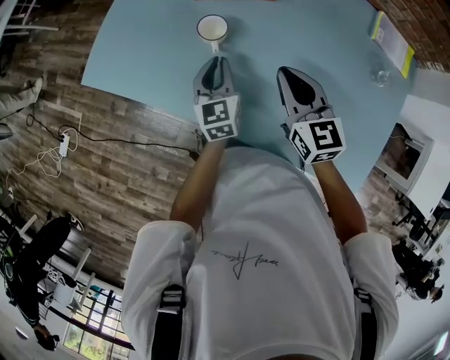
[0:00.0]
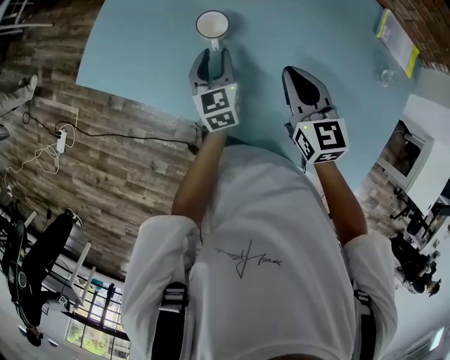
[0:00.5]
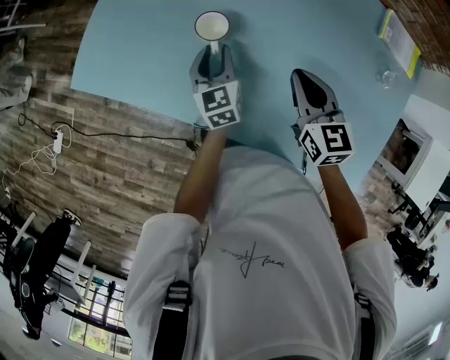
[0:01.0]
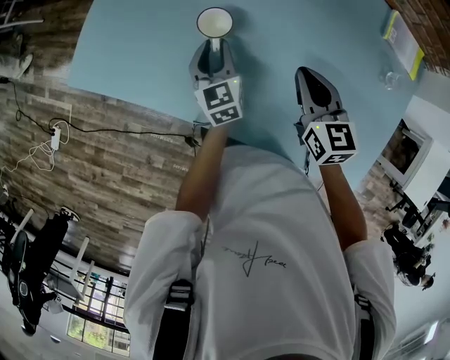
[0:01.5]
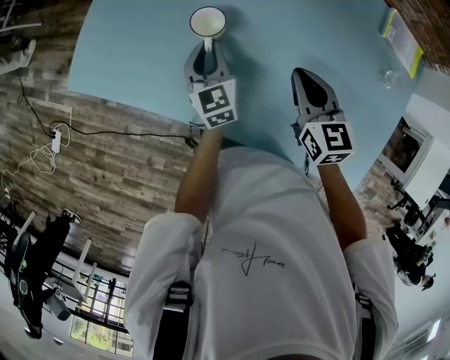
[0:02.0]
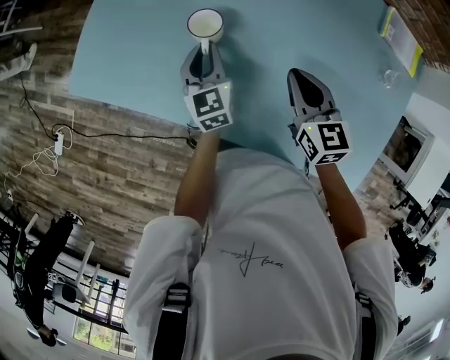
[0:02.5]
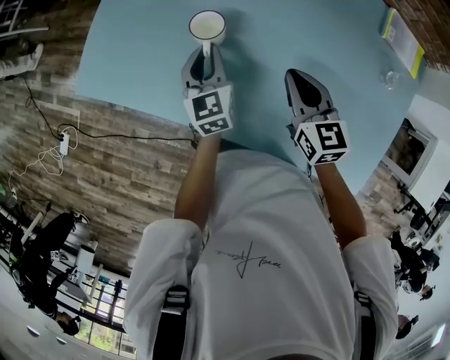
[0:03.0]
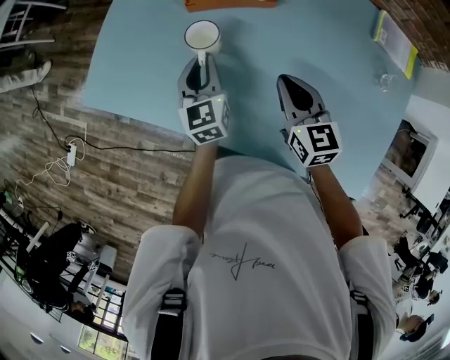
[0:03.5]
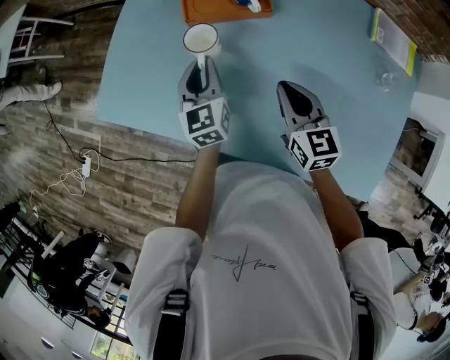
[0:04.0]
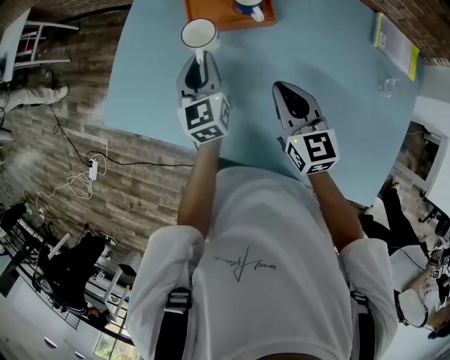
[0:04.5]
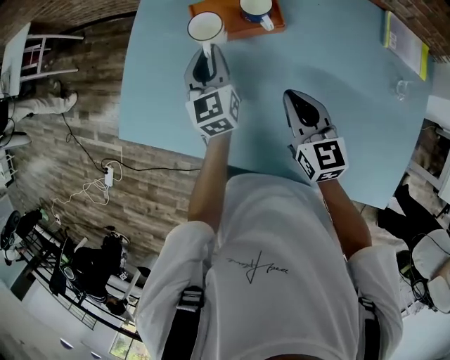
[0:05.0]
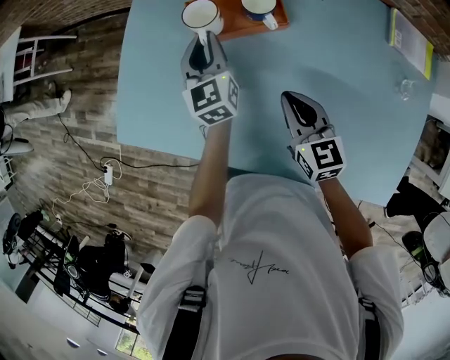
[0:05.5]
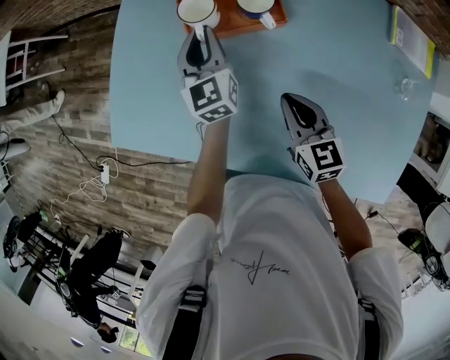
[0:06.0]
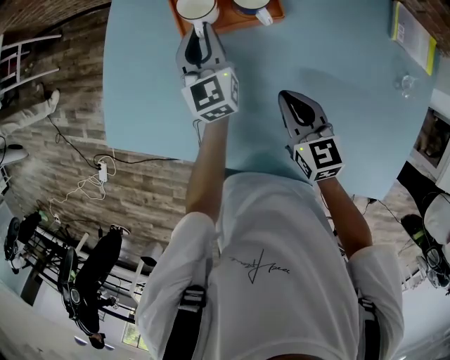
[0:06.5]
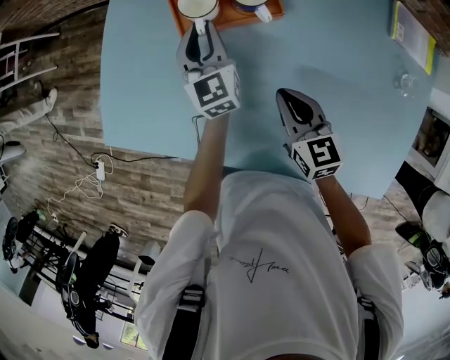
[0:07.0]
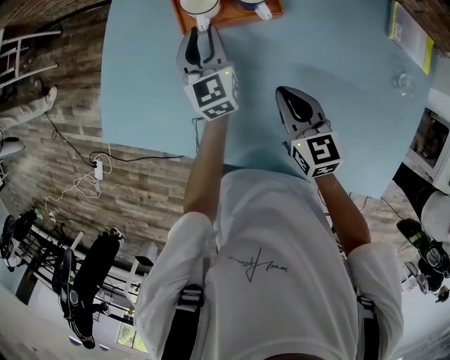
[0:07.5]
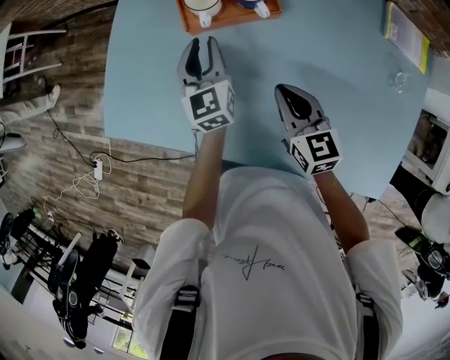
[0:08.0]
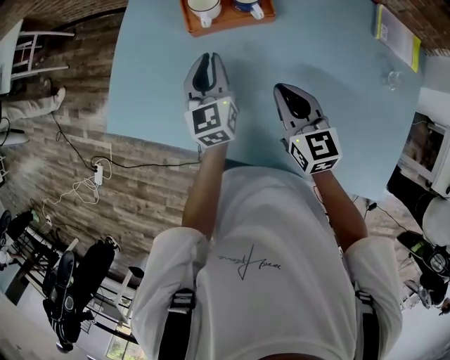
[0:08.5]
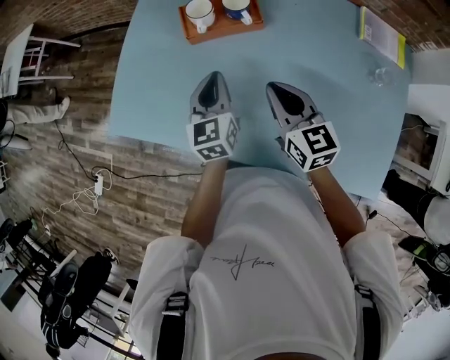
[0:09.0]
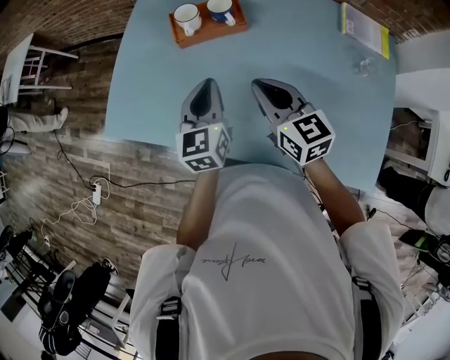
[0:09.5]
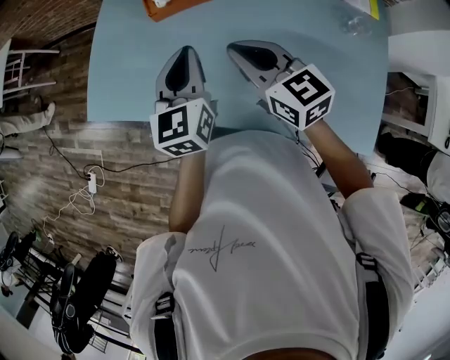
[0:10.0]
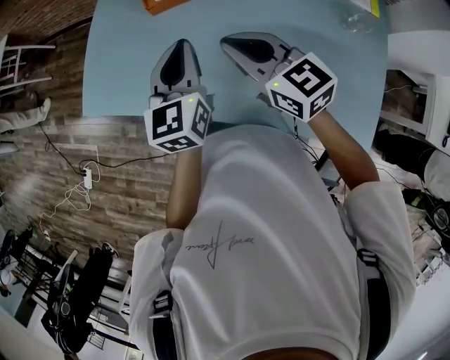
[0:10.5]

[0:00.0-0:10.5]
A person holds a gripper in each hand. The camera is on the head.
0:00.0 to 0:02.0: The left gripper ends up approximately 5 cm from where it was. Meanwhile the right gripper moves approximately 5 cm.
0:02.0 to 0:04.0: The left gripper goes roughly 10 cm upward.
0:04.0 to 0:06.5: The left gripper travels forward by about 15 cm. The right gripper changes place by some 5 cm.
0:06.5 to 0:08.5: The left gripper travels backward by roughly 10 cm. The right gripper goes some 5 cm upward.
0:08.5 to 0:10.5: The right gripper goes about 10 cm upward and backward; the left gripper shifts roughly 15 cm backward and upward.

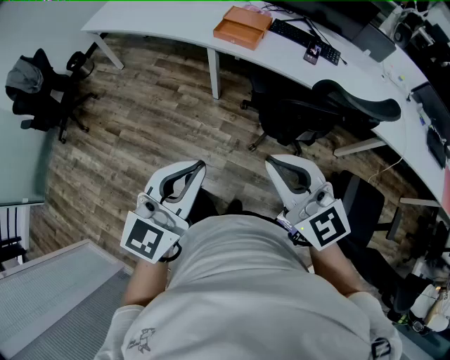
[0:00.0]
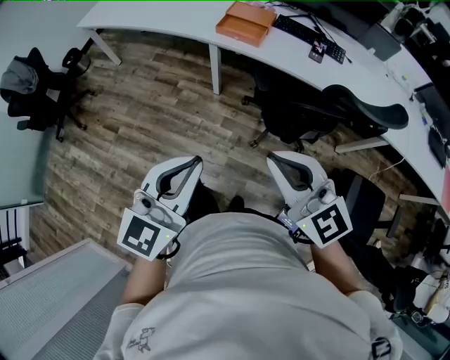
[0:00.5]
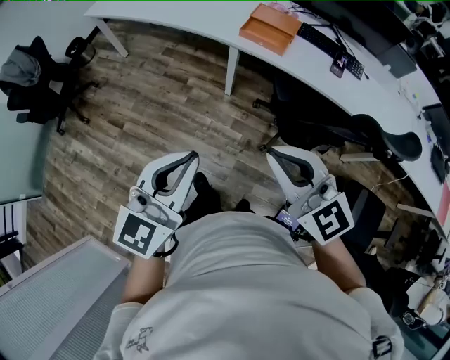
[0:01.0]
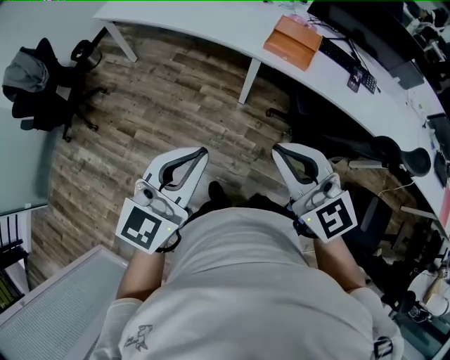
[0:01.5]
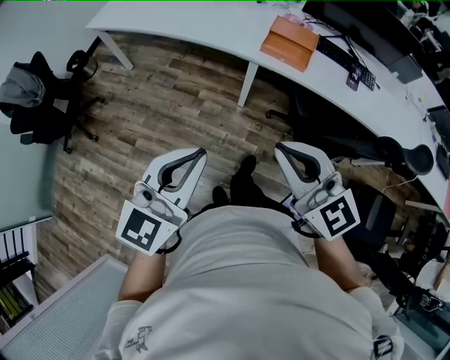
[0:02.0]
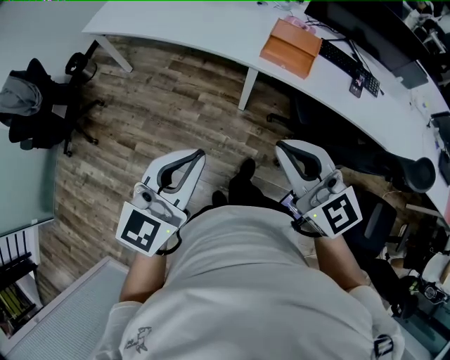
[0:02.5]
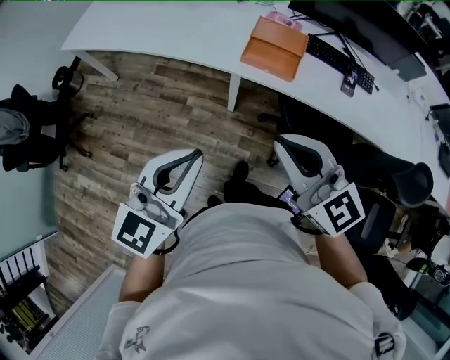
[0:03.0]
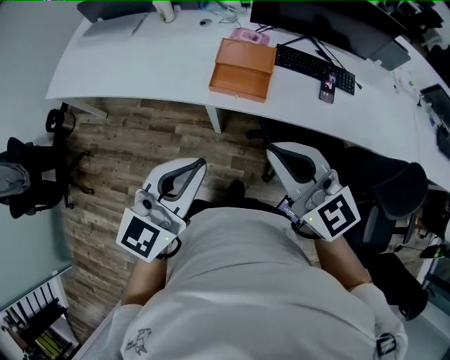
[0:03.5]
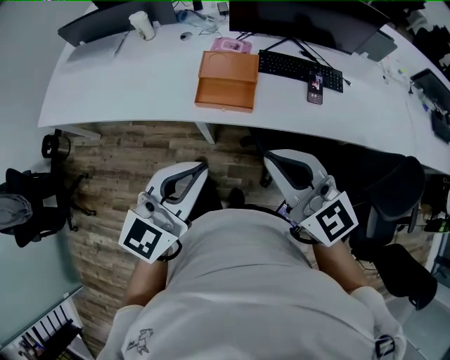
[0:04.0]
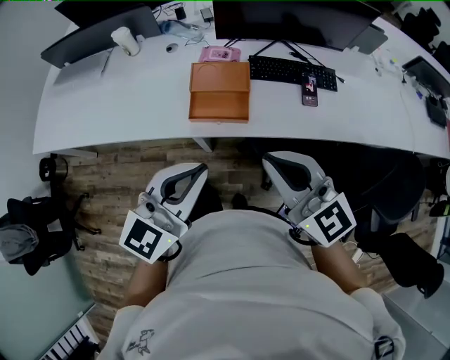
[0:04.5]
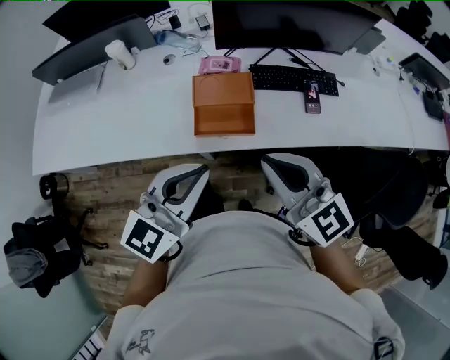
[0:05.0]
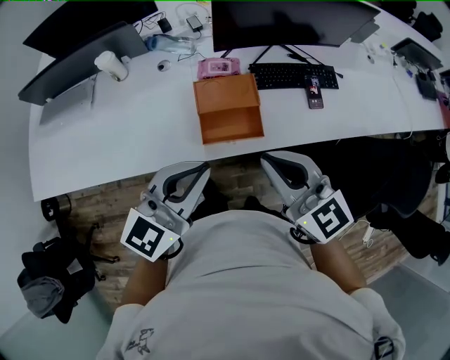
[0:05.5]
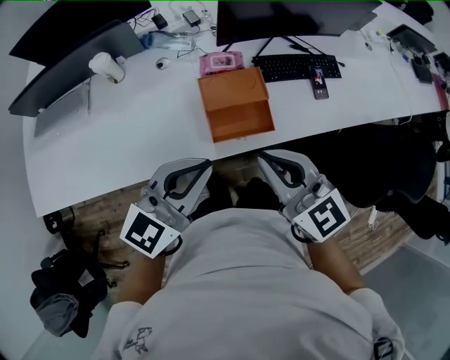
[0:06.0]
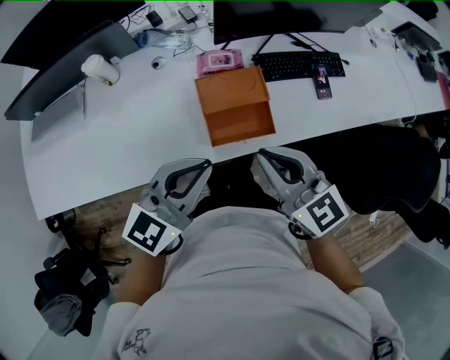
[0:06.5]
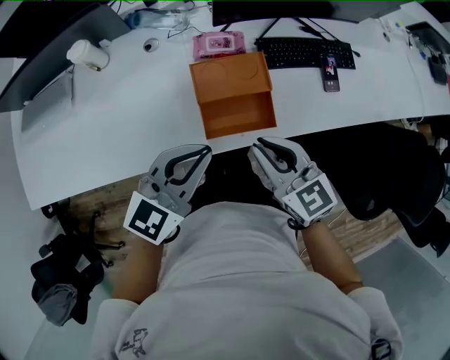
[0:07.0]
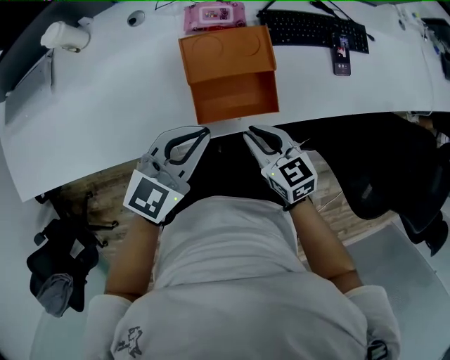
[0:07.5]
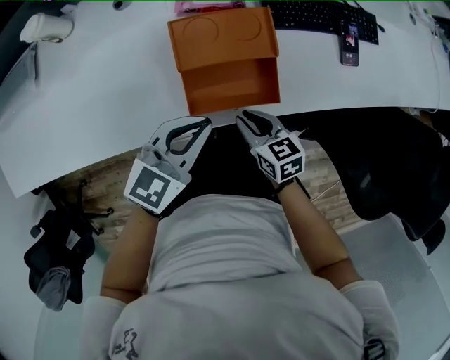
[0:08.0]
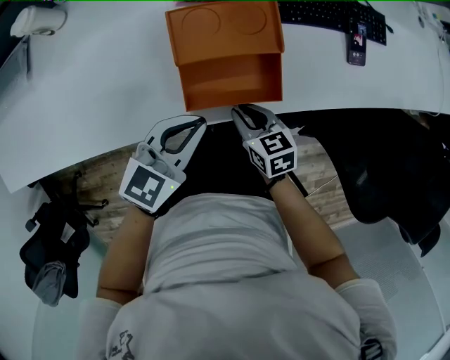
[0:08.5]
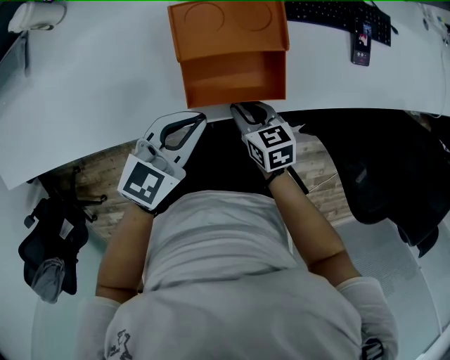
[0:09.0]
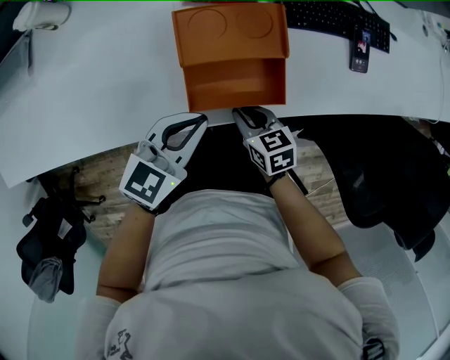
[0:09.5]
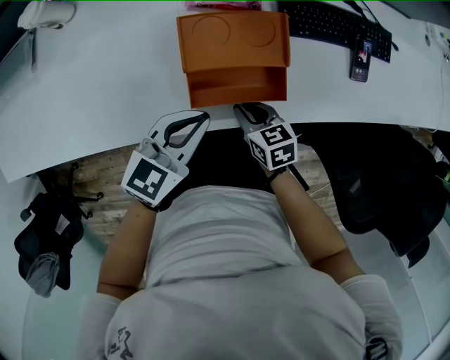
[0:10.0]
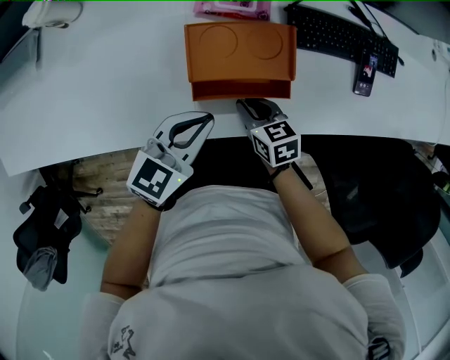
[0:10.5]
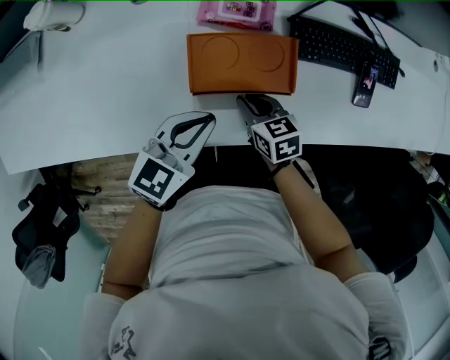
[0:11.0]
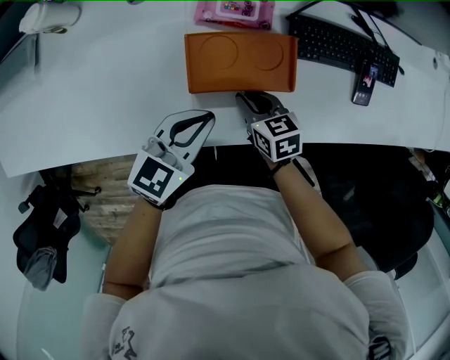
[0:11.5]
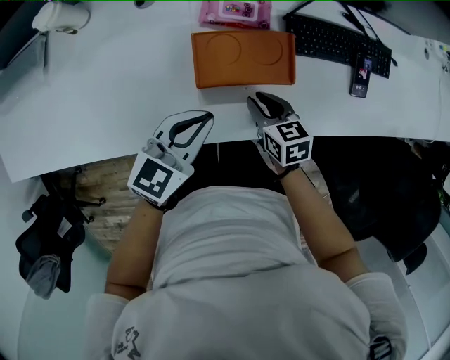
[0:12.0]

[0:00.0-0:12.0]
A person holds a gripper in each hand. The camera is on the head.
0:00.0 to 0:02.0: Both grippers travel together to the left and forward, some 35 cm.
0:02.0 to 0:04.0: The two grippers go some 35 cm forward and to the right. The left gripper changes its angle by about 20 degrees.
0:04.0 to 0:06.0: The right gripper moves to the left and forward, roughly 25 cm, and rotates approximately 20 degrees, while the left gripper travels forward and to the left by about 25 cm, and swivels about 20 degrees.
0:06.0 to 0:08.0: The right gripper goes roughly 40 cm downward, and turns by approximately 40 degrees. The left gripper moves downward, some 25 cm, and turns by some 20 degrees.
0:08.0 to 0:10.0: The right gripper changes place by some 5 cm.
0:10.0 to 0:12.0: The right gripper shifts some 5 cm forward.

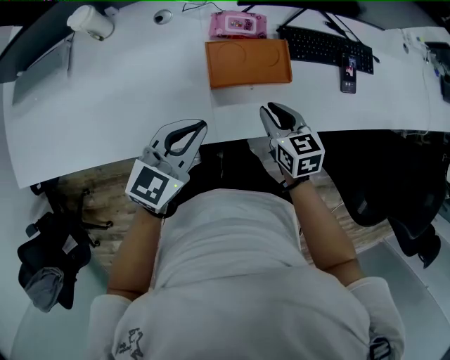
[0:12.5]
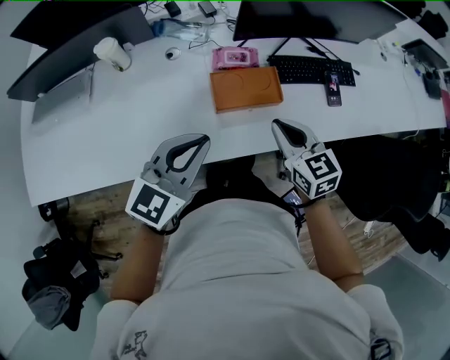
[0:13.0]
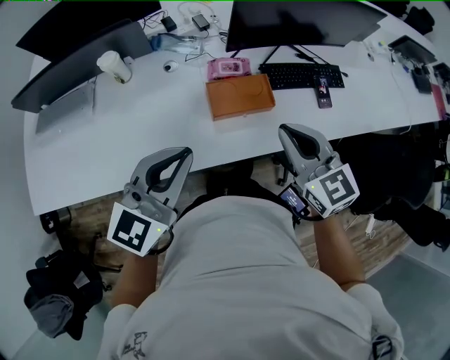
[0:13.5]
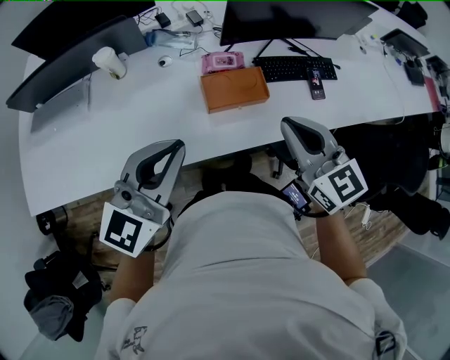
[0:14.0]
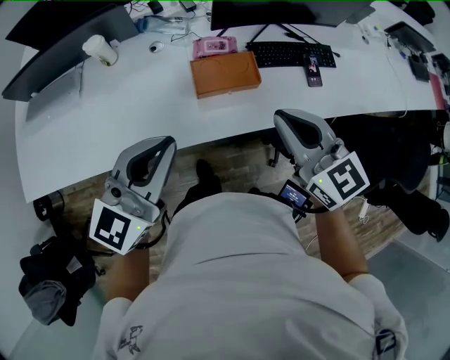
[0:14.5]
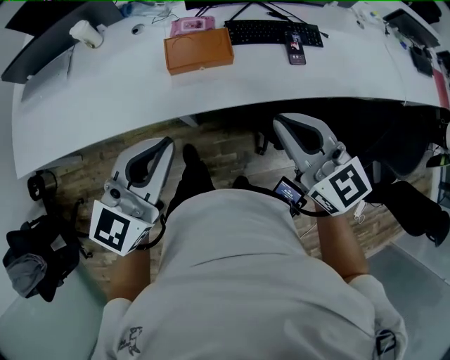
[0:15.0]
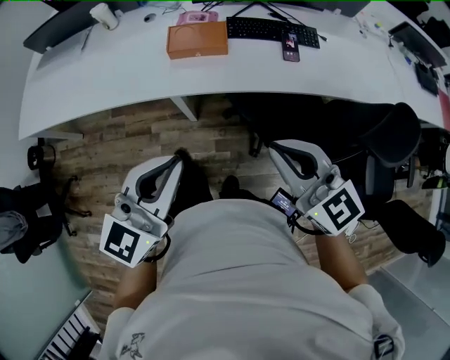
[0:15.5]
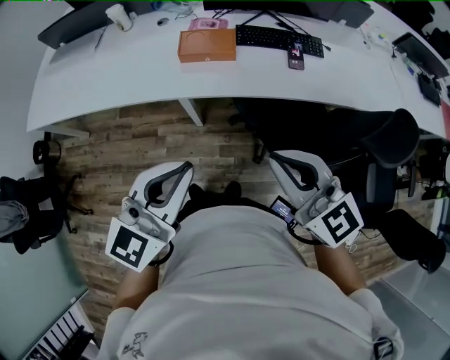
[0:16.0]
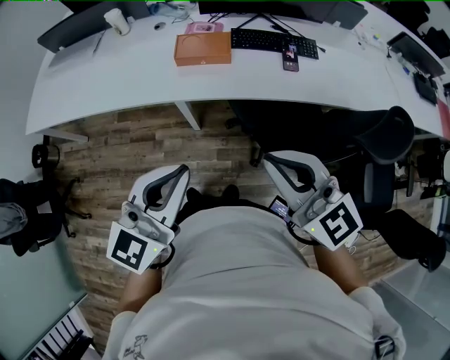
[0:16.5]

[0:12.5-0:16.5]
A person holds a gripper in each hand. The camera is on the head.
0:12.5 to 0:14.5: The right gripper moves upward, approximately 30 cm, and swivels roughly 30 degrees. Meanwhile the left gripper goes some 25 cm upward and backward, and turns by roughly 20 degrees.
0:14.5 to 0:16.5: Both grippers move backward and to the right, approximately 35 cm.
